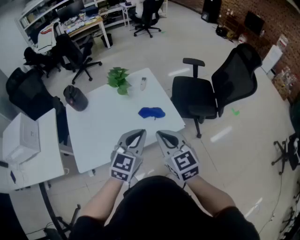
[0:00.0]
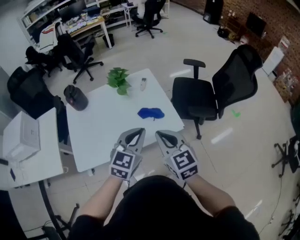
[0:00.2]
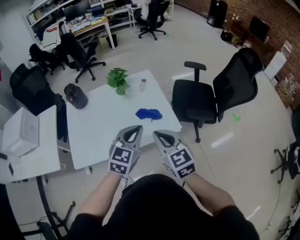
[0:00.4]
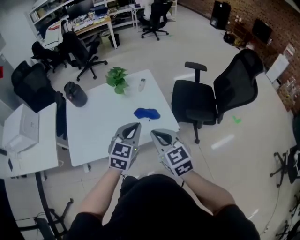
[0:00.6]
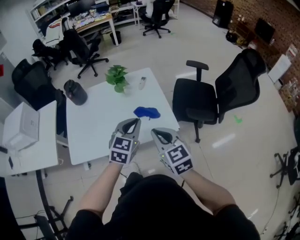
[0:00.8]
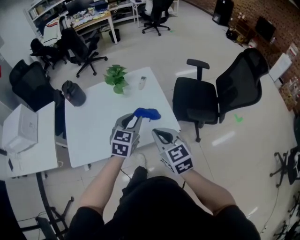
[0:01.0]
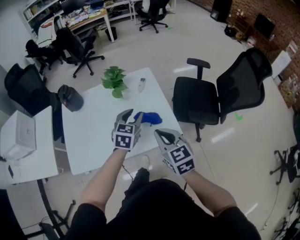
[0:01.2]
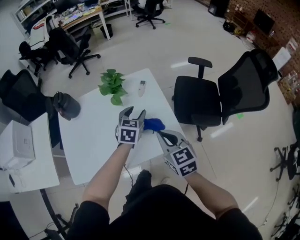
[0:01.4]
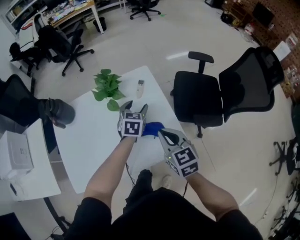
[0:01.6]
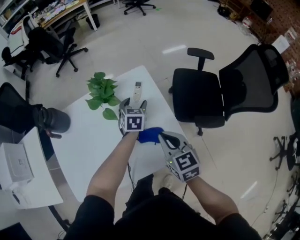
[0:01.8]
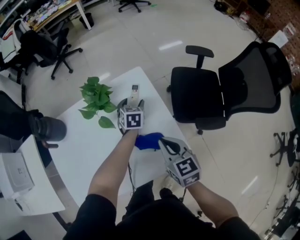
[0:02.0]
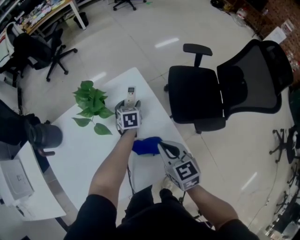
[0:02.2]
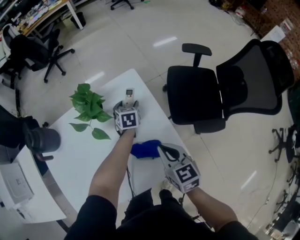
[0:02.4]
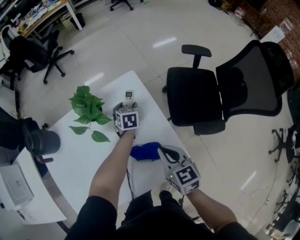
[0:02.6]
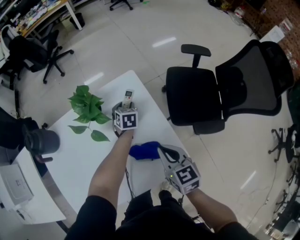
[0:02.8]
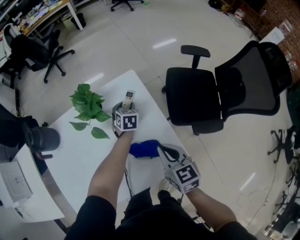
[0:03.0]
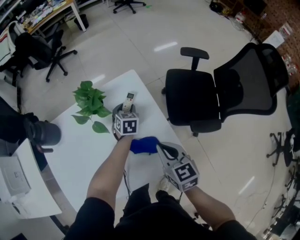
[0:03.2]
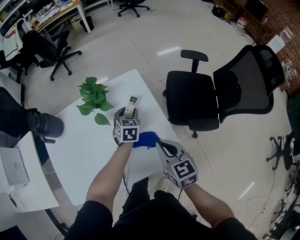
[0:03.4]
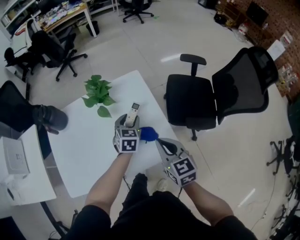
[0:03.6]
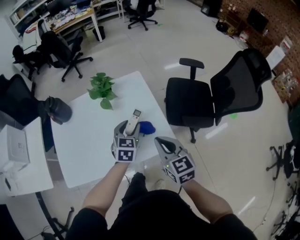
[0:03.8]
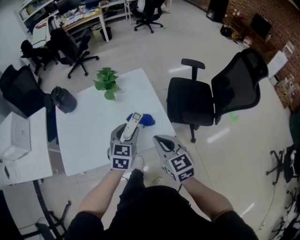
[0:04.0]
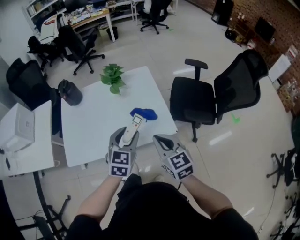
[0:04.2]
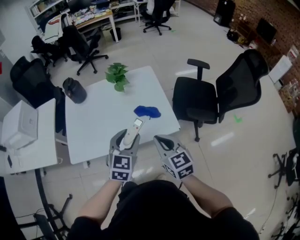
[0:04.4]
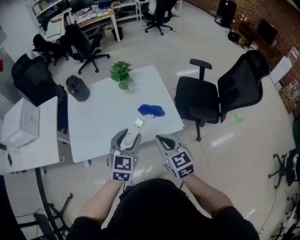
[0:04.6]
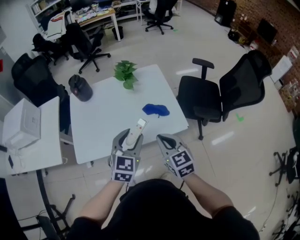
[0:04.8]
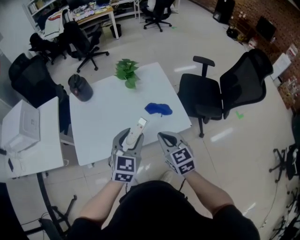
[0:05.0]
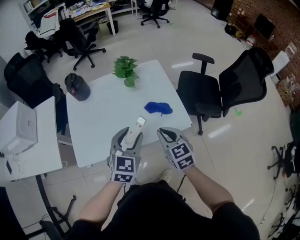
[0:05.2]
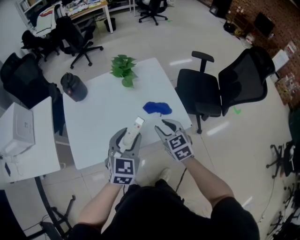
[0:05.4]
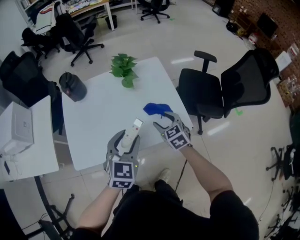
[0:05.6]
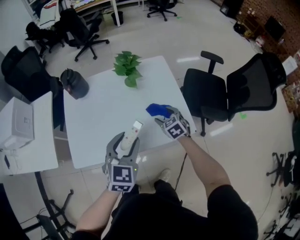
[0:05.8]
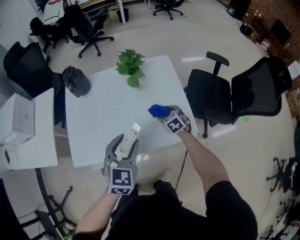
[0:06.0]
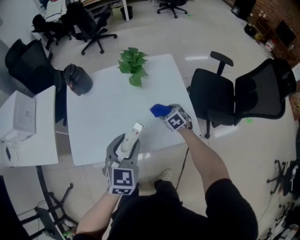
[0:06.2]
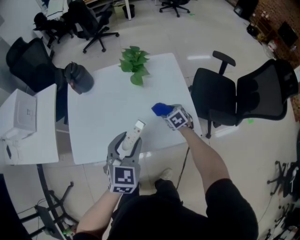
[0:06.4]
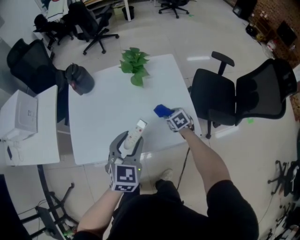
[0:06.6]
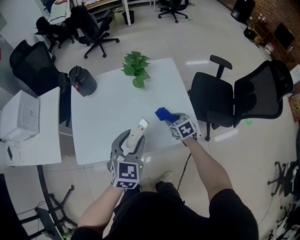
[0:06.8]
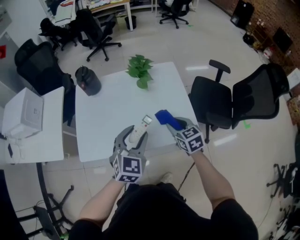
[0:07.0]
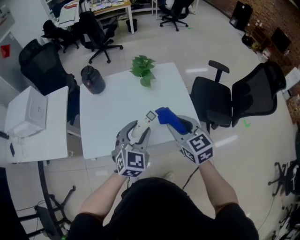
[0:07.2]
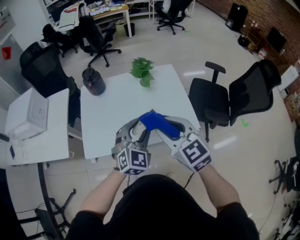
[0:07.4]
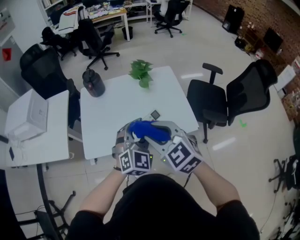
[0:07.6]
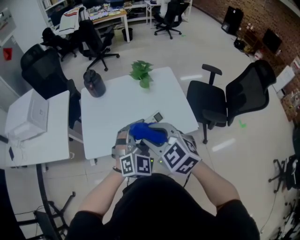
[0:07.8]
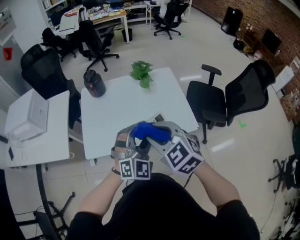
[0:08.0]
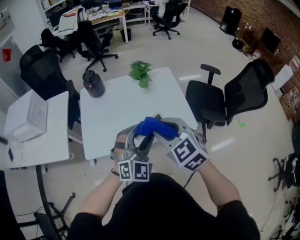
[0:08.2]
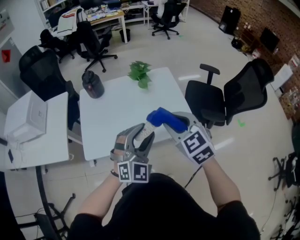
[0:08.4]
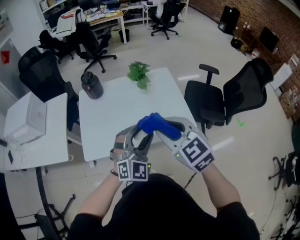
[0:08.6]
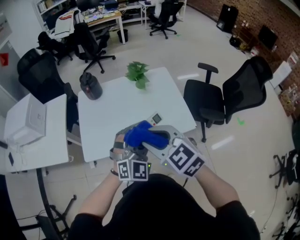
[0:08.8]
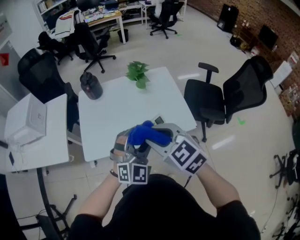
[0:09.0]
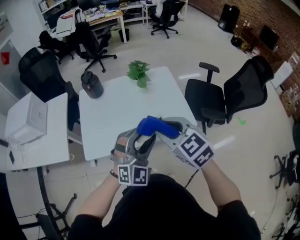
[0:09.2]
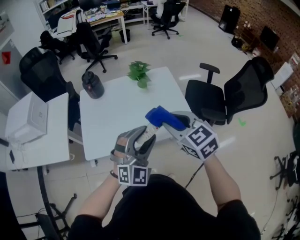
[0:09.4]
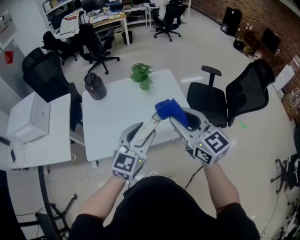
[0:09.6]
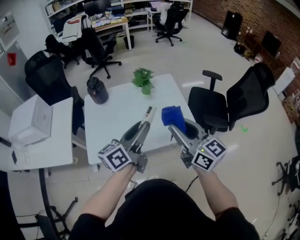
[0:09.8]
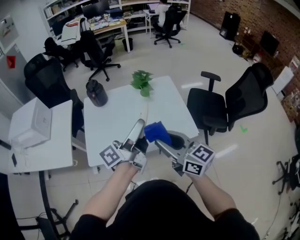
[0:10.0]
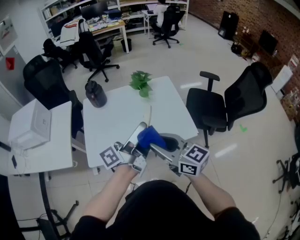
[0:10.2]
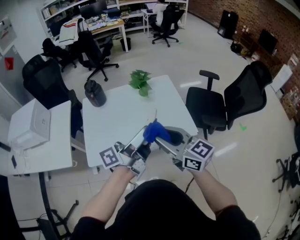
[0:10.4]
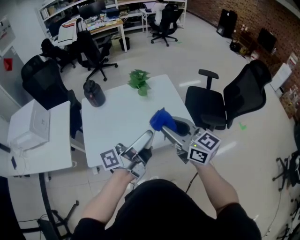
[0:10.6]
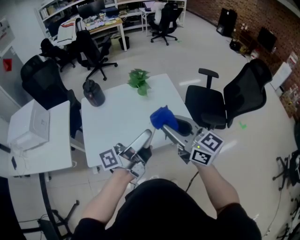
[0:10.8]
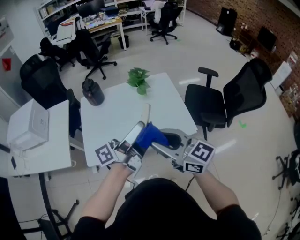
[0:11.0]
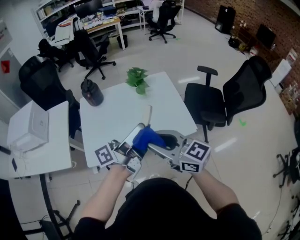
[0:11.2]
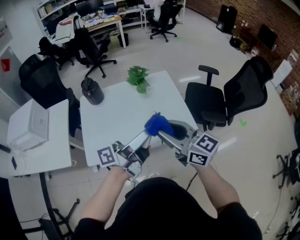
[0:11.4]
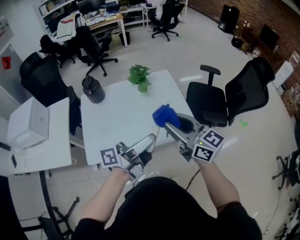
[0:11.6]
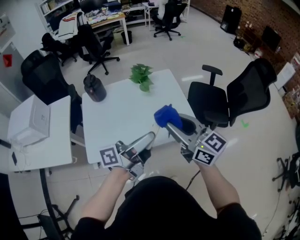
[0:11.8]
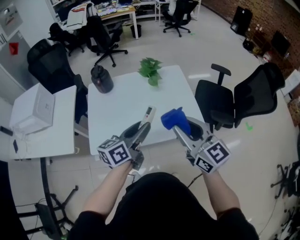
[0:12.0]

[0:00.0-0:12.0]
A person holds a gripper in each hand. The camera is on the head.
0:00.0 to 0:01.6: The right gripper travels forward and downward by some 20 cm; the left gripper goes about 35 cm forward and downward, rotates roughly 30 degrees, and opens.
0:01.6 to 0:03.0: The right gripper travels downward and forward by about 10 cm, while the left gripper shifts some 20 cm forward and downward.
0:03.0 to 0:04.4: The left gripper travels backward and upward by roughly 50 cm, and changes its angle by some 30 degrees. Meanwhile the right gripper shifts some 25 cm backward and upward.
0:04.4 to 0:06.0: The right gripper travels downward and forward by about 35 cm, angles its fingers downward, by approximately 30 degrees, and opens its fingers, while the left gripper moves to the left and forward, roughly 10 cm.
0:06.0 to 0:07.6: The left gripper is displaced upward by approximately 5 cm, and rotates roughly 30 degrees; the right gripper moves upward, backward and to the left, roughly 40 cm, turns by about 30 degrees, and closes.
0:07.6 to 0:09.0: The left gripper shifts by about 5 cm, while the right gripper moves approximately 5 cm to the right and comes back.
0:09.0 to 0:10.4: The left gripper heads upward, covering some 5 cm, and rotates around the line of its fingers by approximately 110 degrees, counterclockwise from behind. The right gripper swivels some 30 degrees.
0:10.4 to 0:12.0: The left gripper is displaced downward by approximately 10 cm, and rotates approximately 40 degrees.

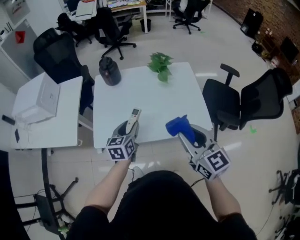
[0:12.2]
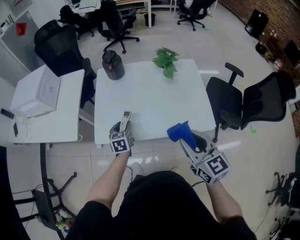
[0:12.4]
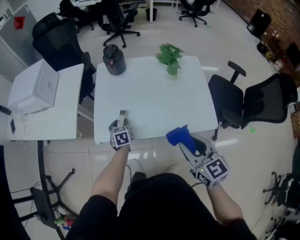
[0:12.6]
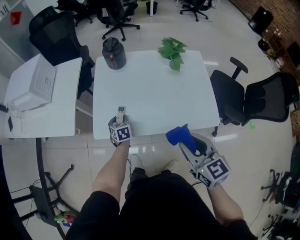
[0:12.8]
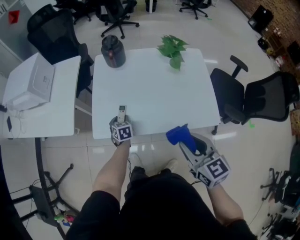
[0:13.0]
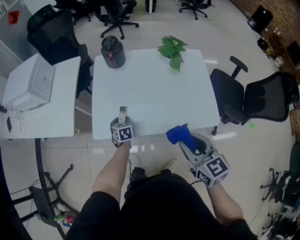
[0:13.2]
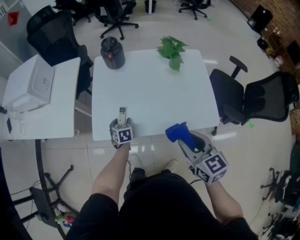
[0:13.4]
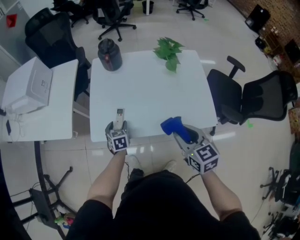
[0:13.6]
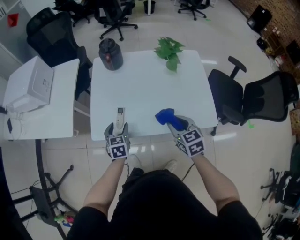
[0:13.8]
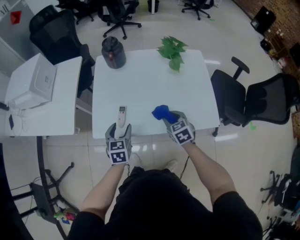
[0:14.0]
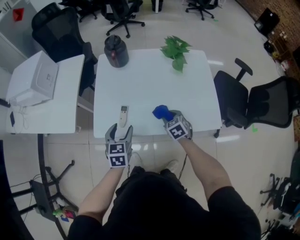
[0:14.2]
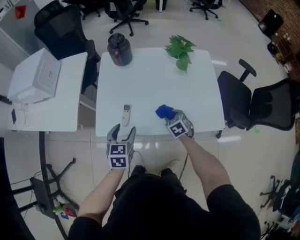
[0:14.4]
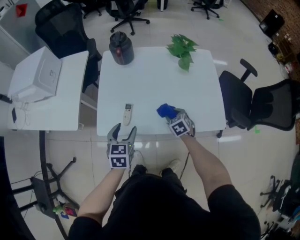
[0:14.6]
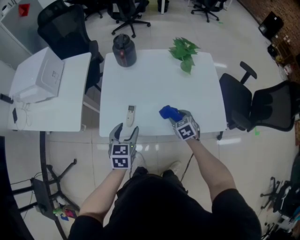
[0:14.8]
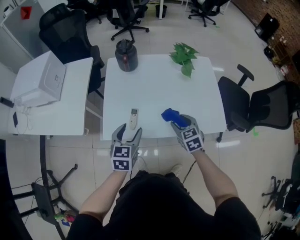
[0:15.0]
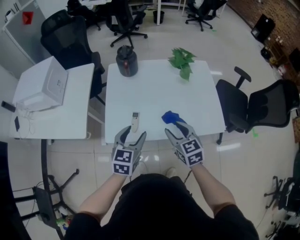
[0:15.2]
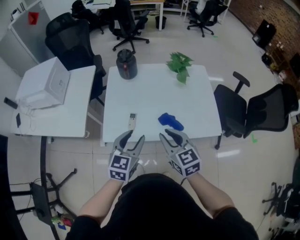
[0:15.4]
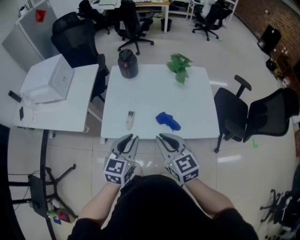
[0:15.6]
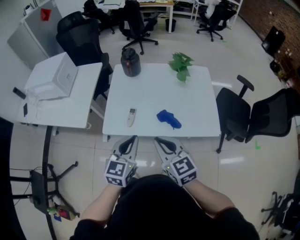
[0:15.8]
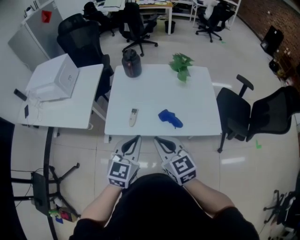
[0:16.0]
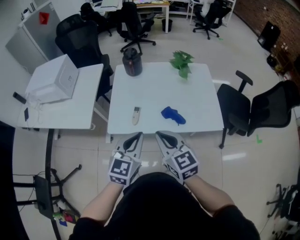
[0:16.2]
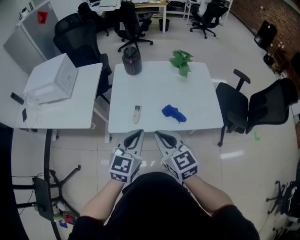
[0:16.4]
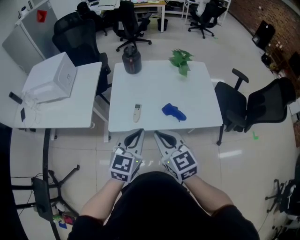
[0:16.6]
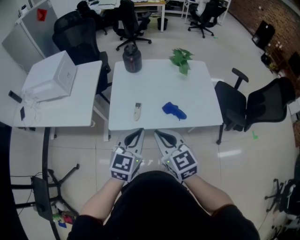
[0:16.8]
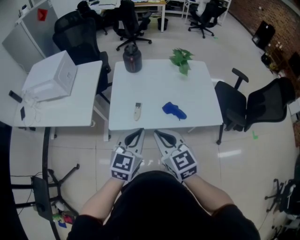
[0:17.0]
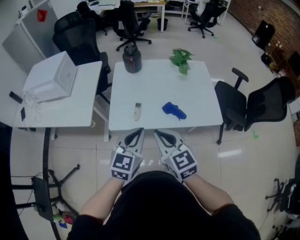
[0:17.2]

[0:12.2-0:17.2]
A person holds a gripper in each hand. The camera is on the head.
0:12.2 to 0:13.8: The right gripper moves downward and forward, about 20 cm, and changes its angle by about 30 degrees. The left gripper travels downward and to the left by some 15 cm, and turns by about 20 degrees.
0:13.8 to 0:15.6: The left gripper goes some 20 cm upward and backward, rotates approximately 30 degrees, and closes its fingers; the right gripper heads upward, to the left and backward, covering approximately 20 cm.
0:15.6 to 0:17.2: The left gripper shifts by roughly 5 cm, while the right gripper travels to the left by some 10 cm.

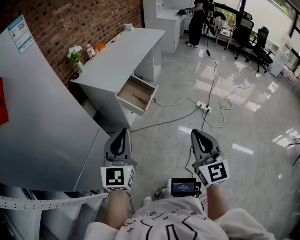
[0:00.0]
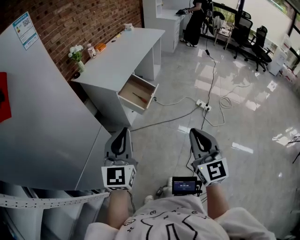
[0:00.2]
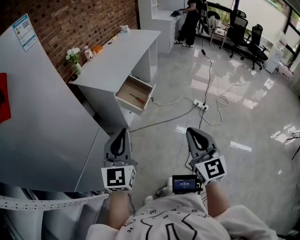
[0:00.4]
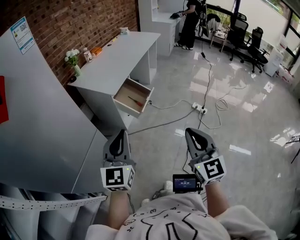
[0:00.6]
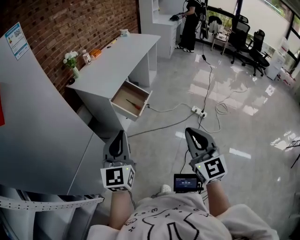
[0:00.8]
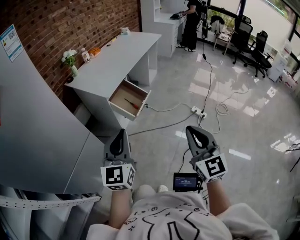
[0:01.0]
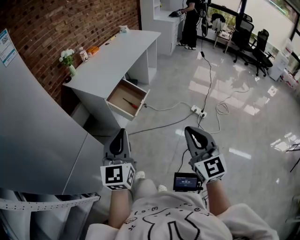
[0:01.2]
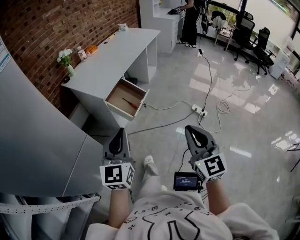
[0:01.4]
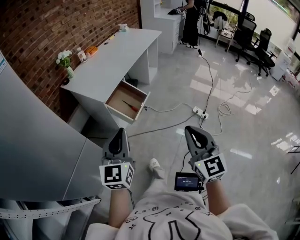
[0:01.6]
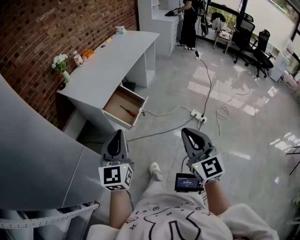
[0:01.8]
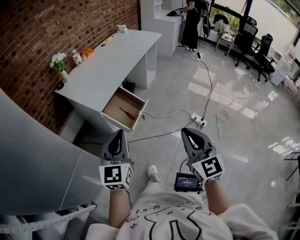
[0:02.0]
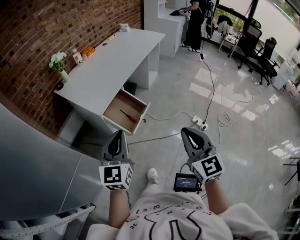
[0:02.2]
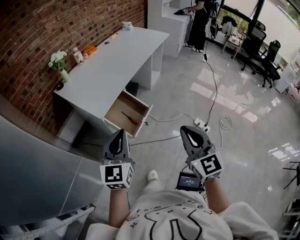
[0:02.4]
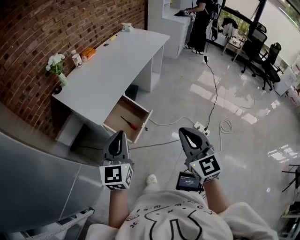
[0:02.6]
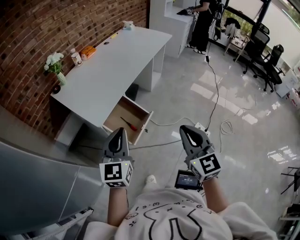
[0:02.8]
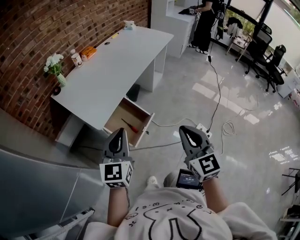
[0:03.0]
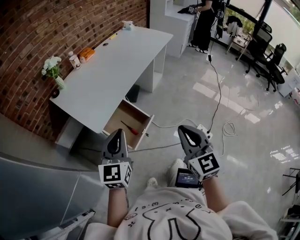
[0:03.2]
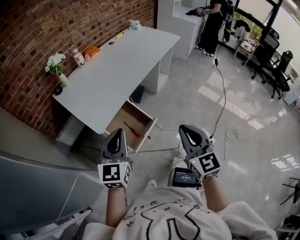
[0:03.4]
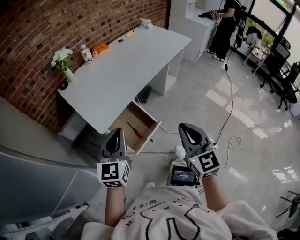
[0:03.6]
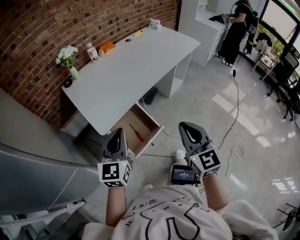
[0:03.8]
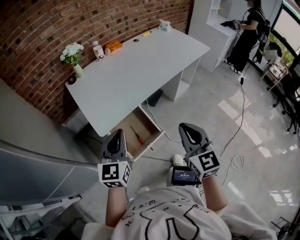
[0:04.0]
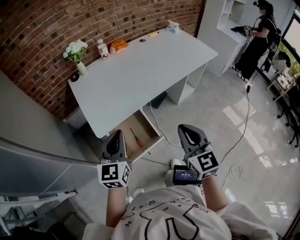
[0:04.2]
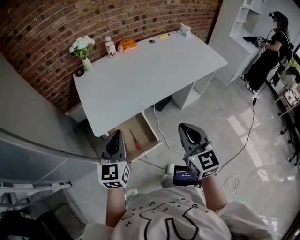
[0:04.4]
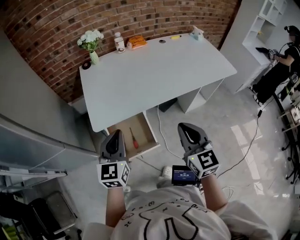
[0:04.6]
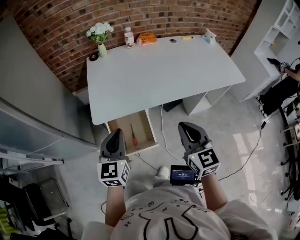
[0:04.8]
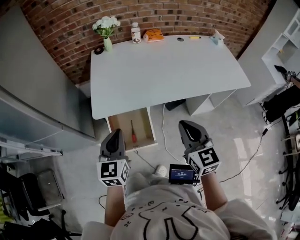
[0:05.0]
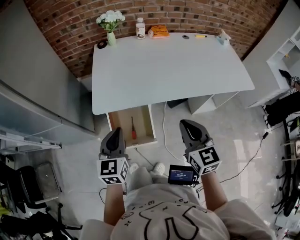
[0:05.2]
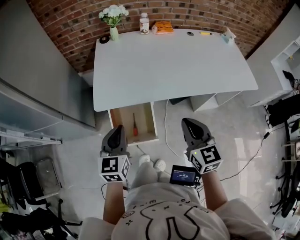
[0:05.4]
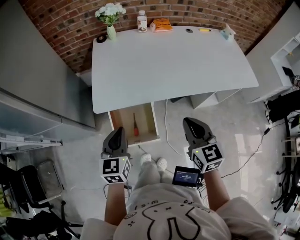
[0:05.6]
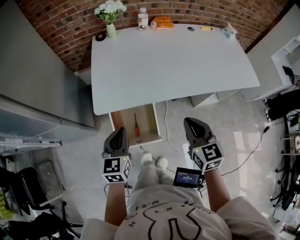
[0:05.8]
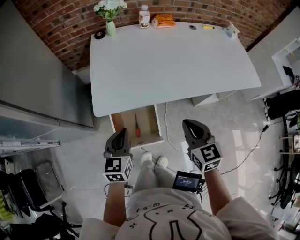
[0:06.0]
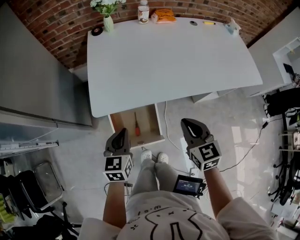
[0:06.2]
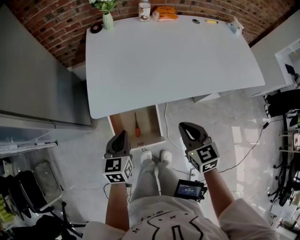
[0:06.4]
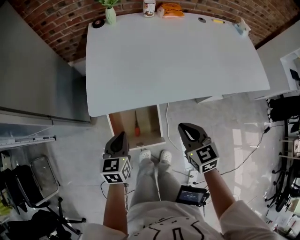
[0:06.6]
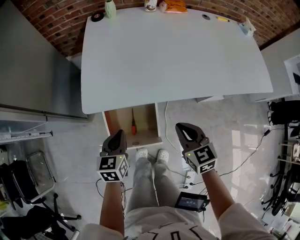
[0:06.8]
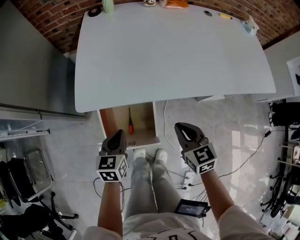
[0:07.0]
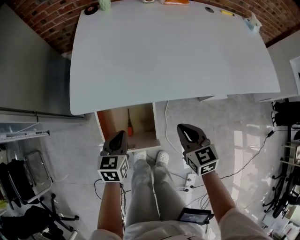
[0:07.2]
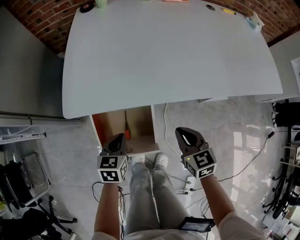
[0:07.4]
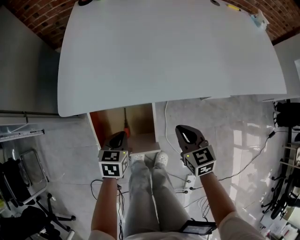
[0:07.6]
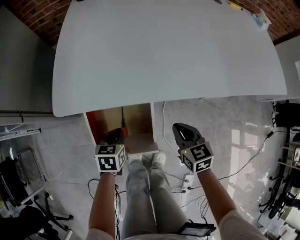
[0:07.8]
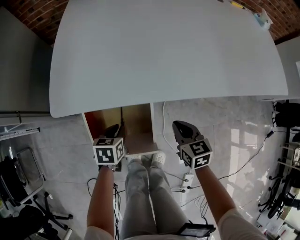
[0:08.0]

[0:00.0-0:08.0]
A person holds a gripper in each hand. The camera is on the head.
0:00.0 to 0:01.6: Both grippers travel together forward and to the right, roughly 15 cm.
0:01.6 to 0:03.2: Both grippers move forward, approximately 30 cm.
0:03.2 to 0:04.8: The right gripper changes place by about 30 cm, and rotates approximately 40 degrees; the left gripper changes place by about 15 cm, and swivels approximately 40 degrees.
0:04.8 to 0:06.4: The right gripper moves downward and forward, about 15 cm, and turns by roughly 20 degrees, while the left gripper goes roughly 15 cm downward, and turns by approximately 20 degrees.
0:06.4 to 0:08.0: Both grippers move downward, approximately 25 cm. The left gripper changes its angle by some 30 degrees.
